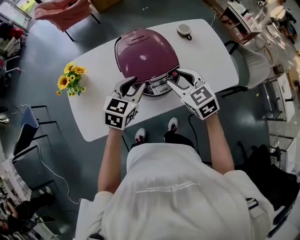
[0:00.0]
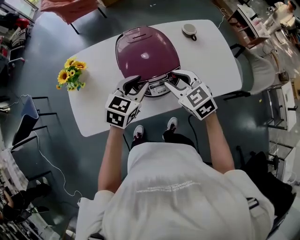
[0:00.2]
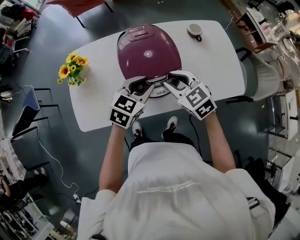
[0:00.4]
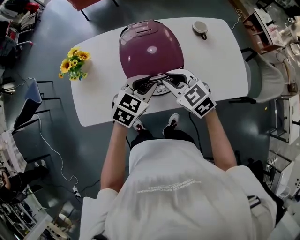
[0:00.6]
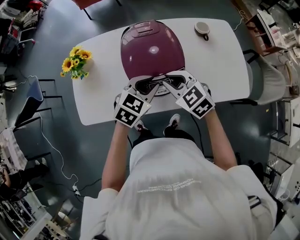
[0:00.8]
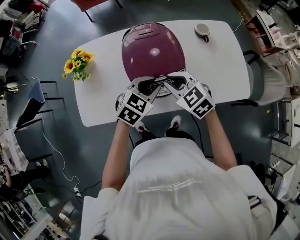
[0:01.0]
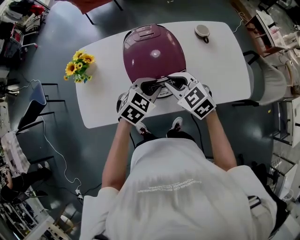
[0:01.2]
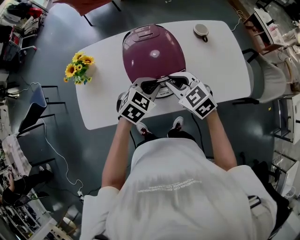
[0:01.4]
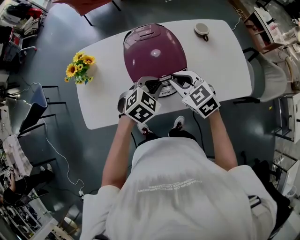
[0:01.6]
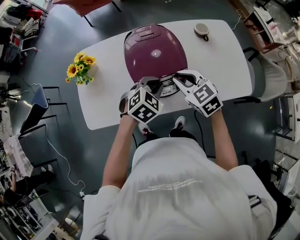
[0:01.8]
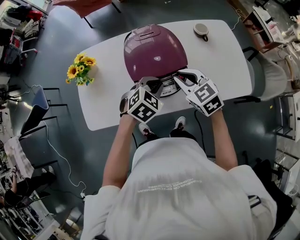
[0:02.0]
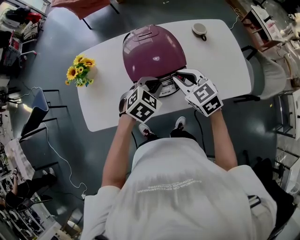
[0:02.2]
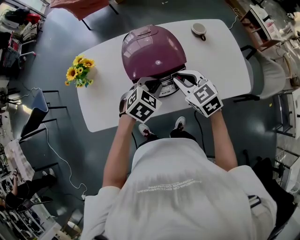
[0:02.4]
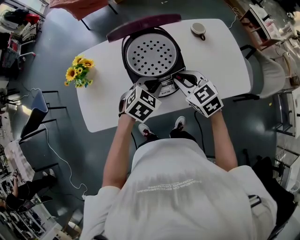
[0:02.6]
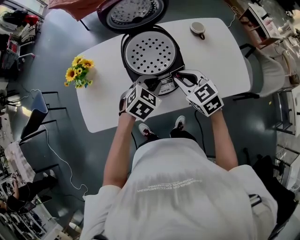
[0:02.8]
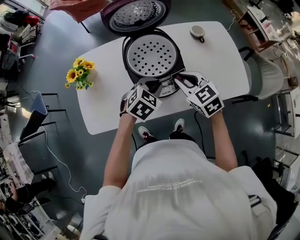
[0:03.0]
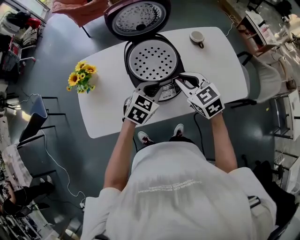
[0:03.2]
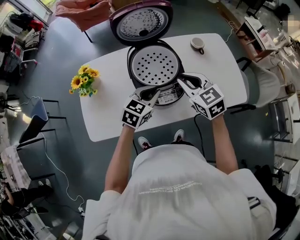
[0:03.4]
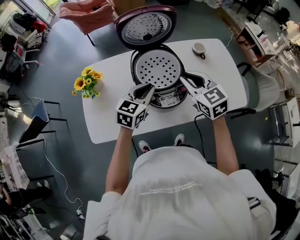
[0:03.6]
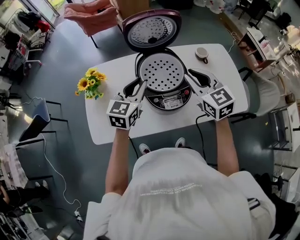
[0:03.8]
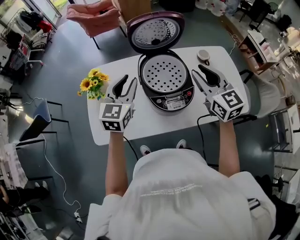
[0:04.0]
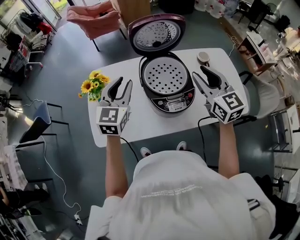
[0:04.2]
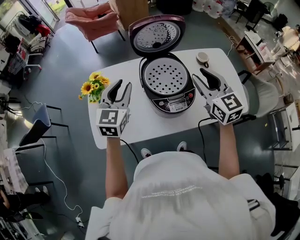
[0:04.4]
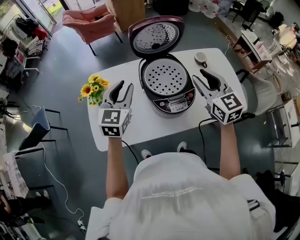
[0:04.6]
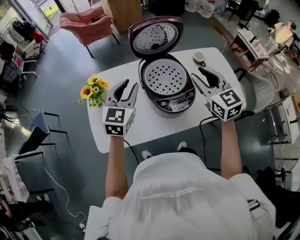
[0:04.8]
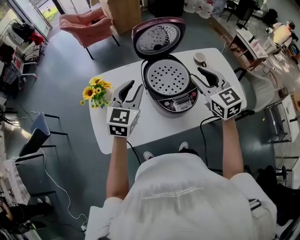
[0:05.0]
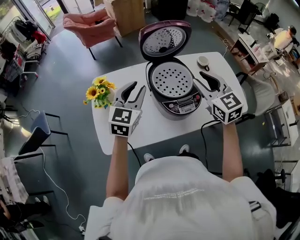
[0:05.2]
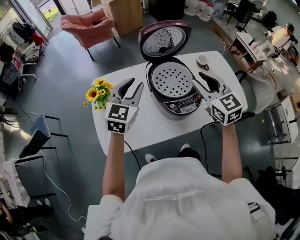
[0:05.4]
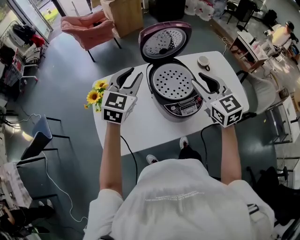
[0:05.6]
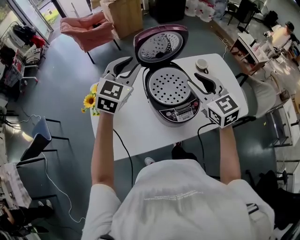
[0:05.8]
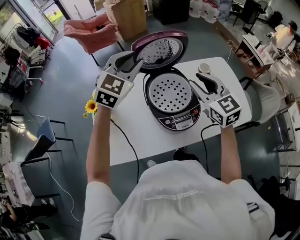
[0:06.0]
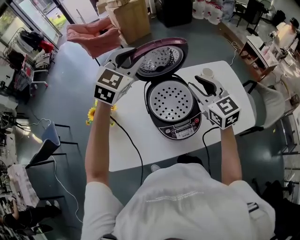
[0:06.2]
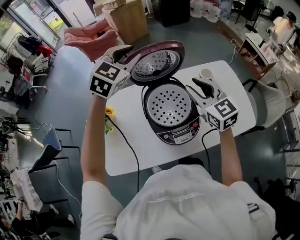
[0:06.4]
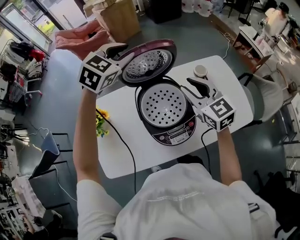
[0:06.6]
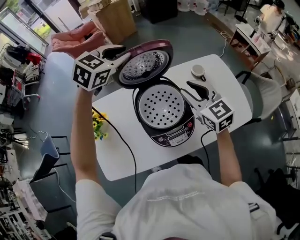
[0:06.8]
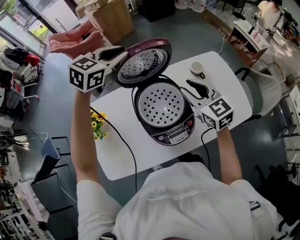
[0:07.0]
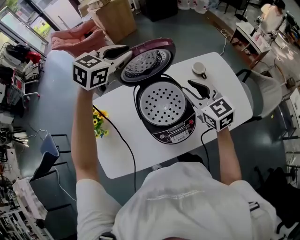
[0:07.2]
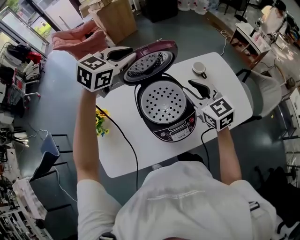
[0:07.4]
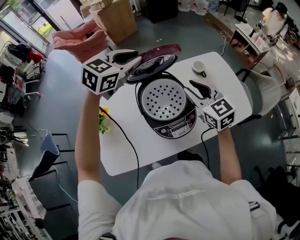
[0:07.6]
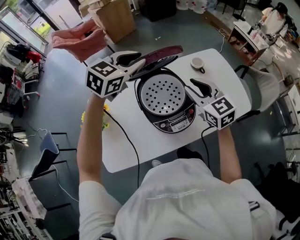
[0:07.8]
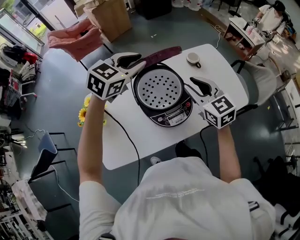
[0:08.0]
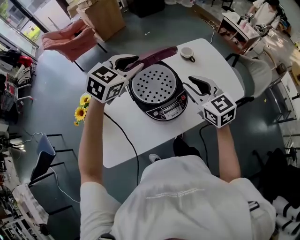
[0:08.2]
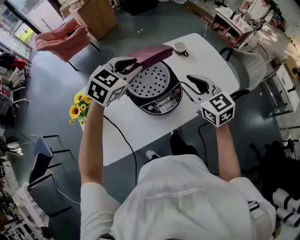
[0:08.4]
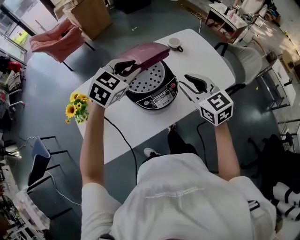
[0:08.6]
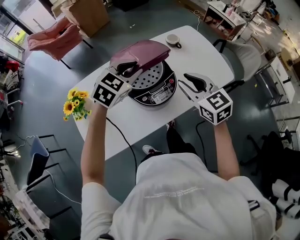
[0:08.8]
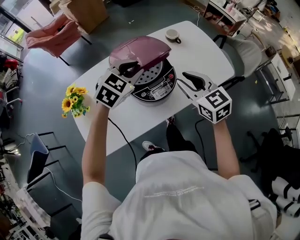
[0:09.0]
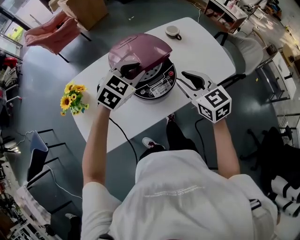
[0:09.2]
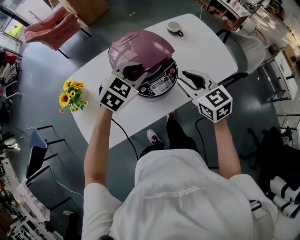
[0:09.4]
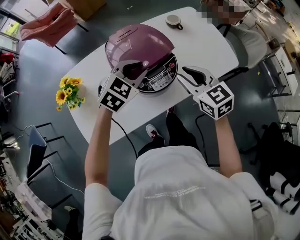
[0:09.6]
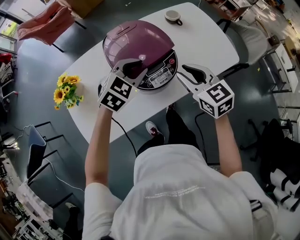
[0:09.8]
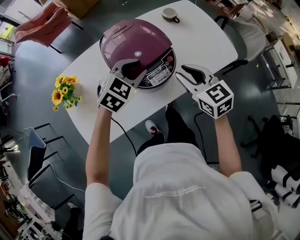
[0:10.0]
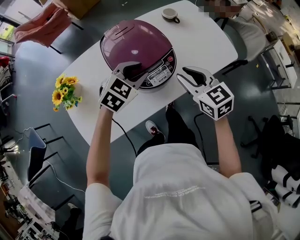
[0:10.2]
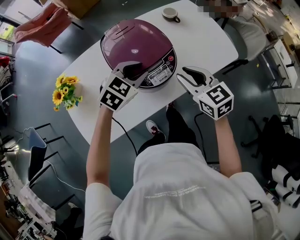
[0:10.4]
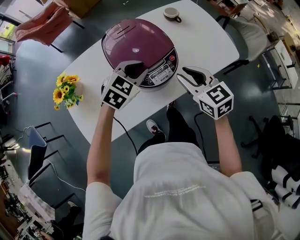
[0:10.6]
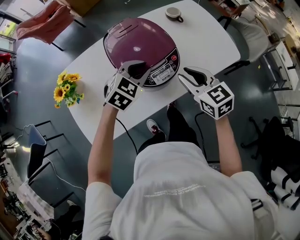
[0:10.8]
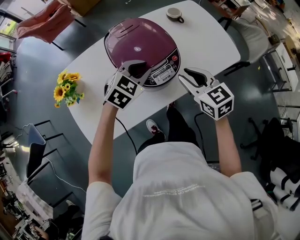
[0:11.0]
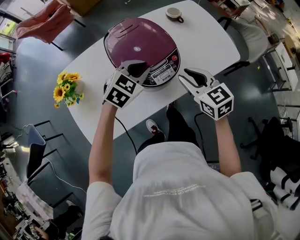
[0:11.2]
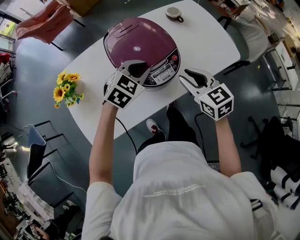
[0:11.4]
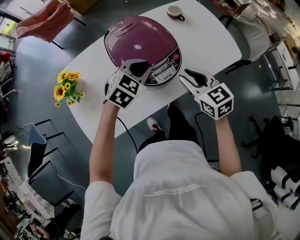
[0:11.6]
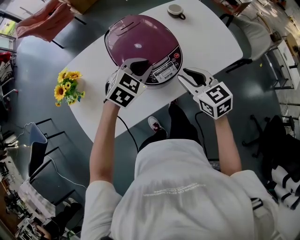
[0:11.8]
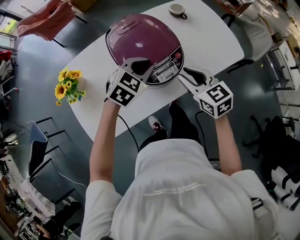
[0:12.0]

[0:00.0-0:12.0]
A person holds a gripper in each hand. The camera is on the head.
0:00.0 to 0:01.6: The left gripper heads to the right, covering roughly 5 cm, rotates some 30 degrees, and closes, while the right gripper closes its fingers.
0:01.6 to 0:03.0: The grippers stay close to where they were, moving slightly.
0:03.0 to 0:04.4: The right gripper travels upward by about 15 cm, turns by some 30 degrees, and opens. Meanwhile the left gripper is displaced to the left and upward by about 25 cm, and tips its fingers upward by some 40 degrees.
0:04.4 to 0:06.0: The left gripper goes roughly 15 cm forward, upward and to the right, and swivels about 30 degrees; the right gripper is displaced forward by approximately 5 cm.
0:06.0 to 0:07.6: The right gripper moves roughly 5 cm; the left gripper shifts about 10 cm forward and to the right, and swivels some 30 degrees.
0:07.6 to 0:09.0: The left gripper travels backward, downward and to the right by roughly 20 cm; the right gripper goes some 15 cm backward and to the right.
0:09.0 to 0:10.4: The grippers both shift downward by about 10 cm.
0:10.4 to 0:12.0: There are only small adjustments of the grippers.

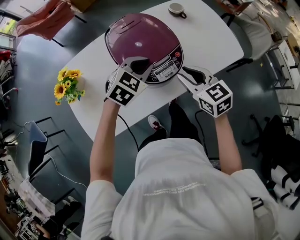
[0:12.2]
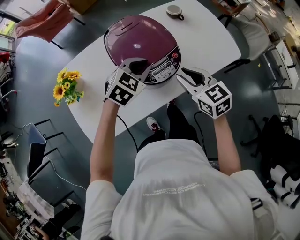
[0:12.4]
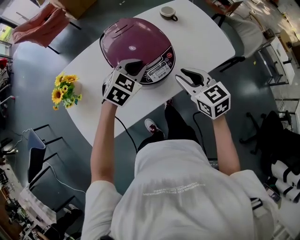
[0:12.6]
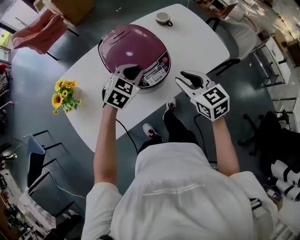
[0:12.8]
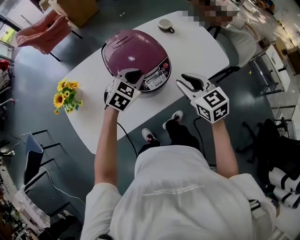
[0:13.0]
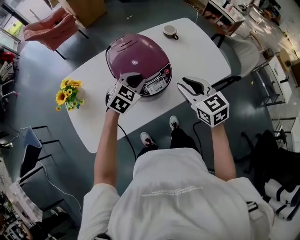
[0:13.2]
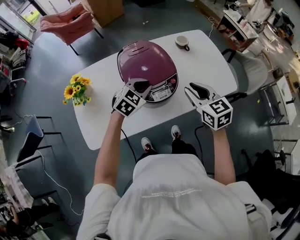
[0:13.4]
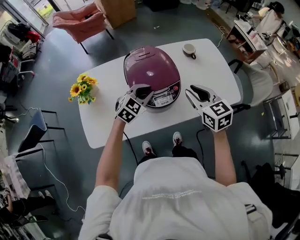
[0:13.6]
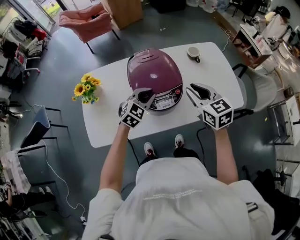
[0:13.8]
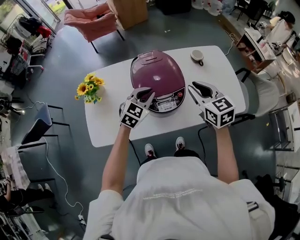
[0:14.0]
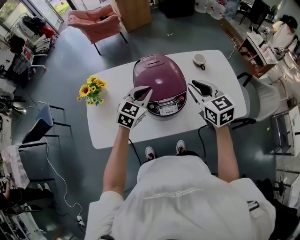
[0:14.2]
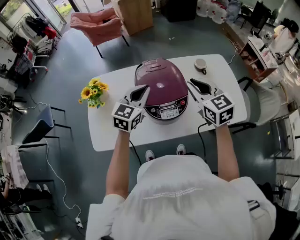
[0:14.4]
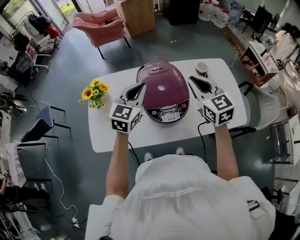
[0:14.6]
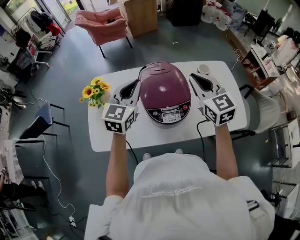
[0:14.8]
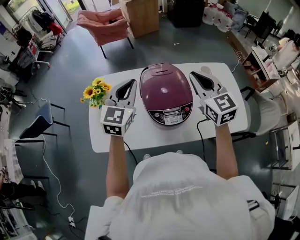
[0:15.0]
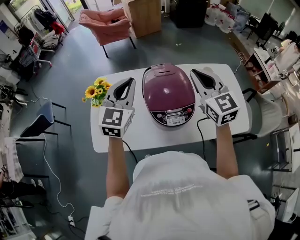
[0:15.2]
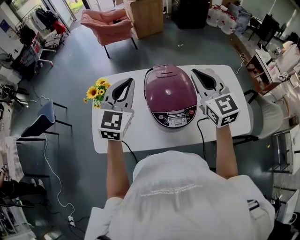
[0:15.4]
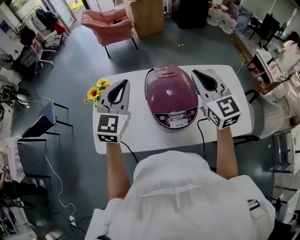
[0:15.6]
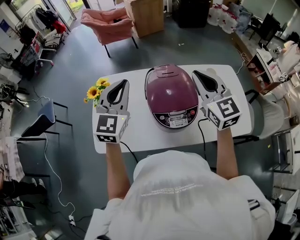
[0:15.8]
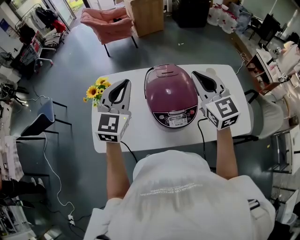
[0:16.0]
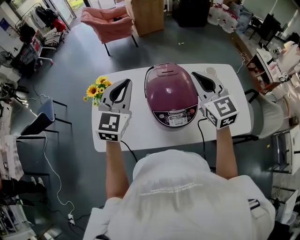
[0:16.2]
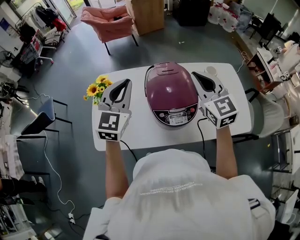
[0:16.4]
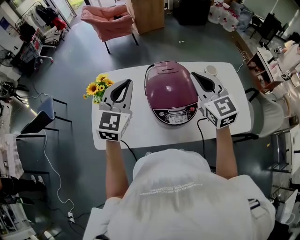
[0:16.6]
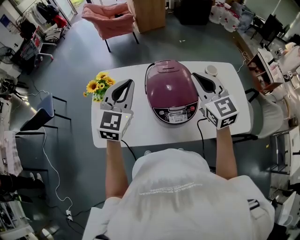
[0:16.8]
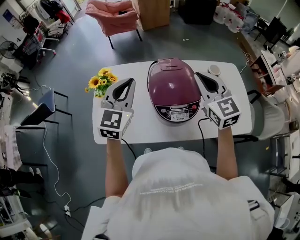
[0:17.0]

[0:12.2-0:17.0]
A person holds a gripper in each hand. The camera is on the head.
0:12.2 to 0:13.8: The right gripper is displaced upward and forward by some 10 cm.
0:13.8 to 0:15.4: The right gripper is displaced upward, forward and to the left by some 15 cm, and changes its angle by roughly 30 degrees. The left gripper moves upward and to the left, some 25 cm, and changes its angle by approximately 40 degrees.
0:15.4 to 0:17.0: There are only small adjustments of the grippers.

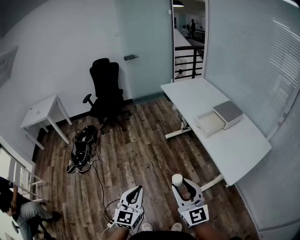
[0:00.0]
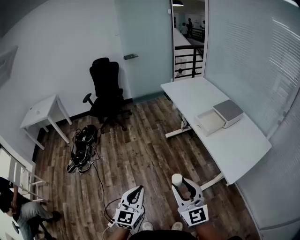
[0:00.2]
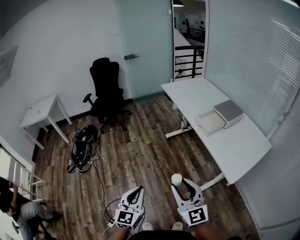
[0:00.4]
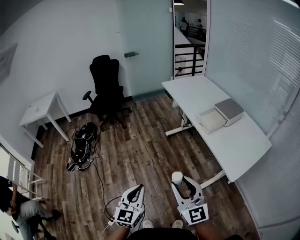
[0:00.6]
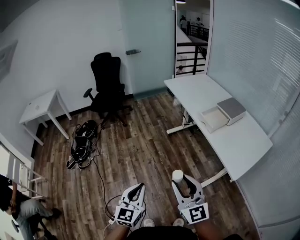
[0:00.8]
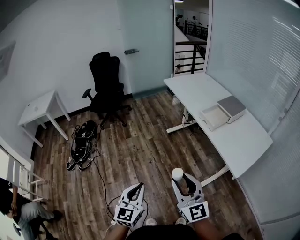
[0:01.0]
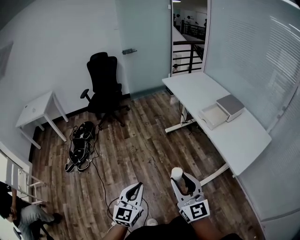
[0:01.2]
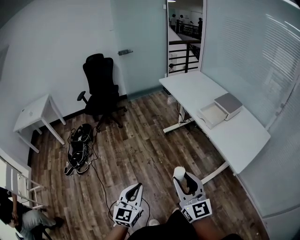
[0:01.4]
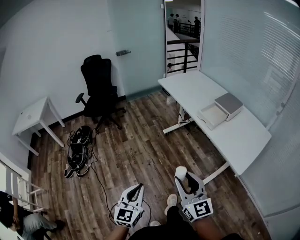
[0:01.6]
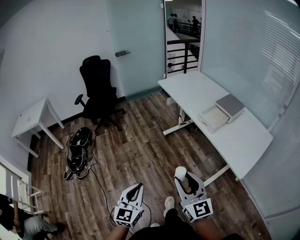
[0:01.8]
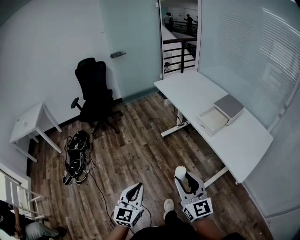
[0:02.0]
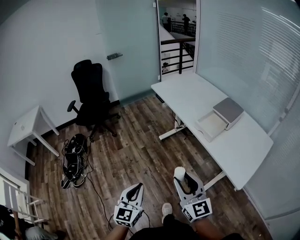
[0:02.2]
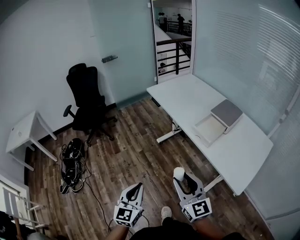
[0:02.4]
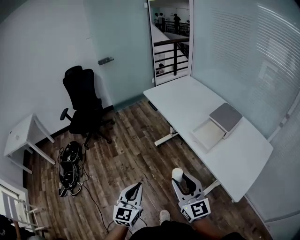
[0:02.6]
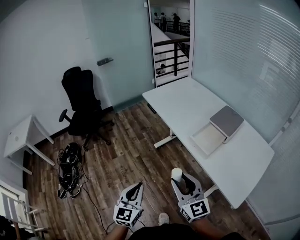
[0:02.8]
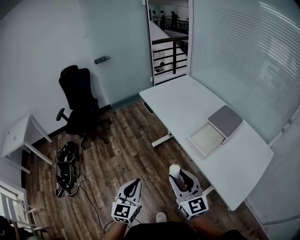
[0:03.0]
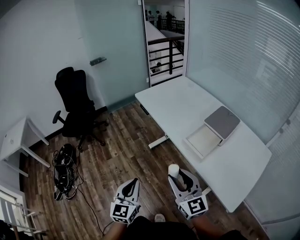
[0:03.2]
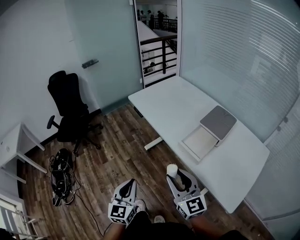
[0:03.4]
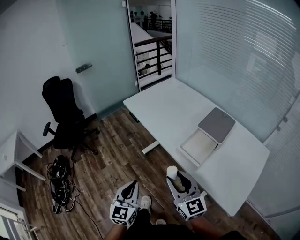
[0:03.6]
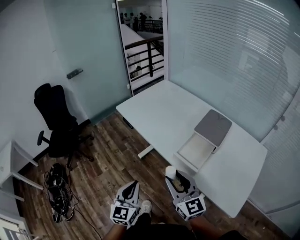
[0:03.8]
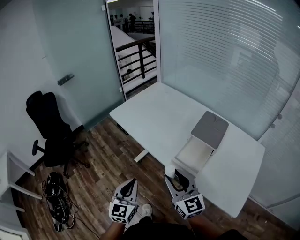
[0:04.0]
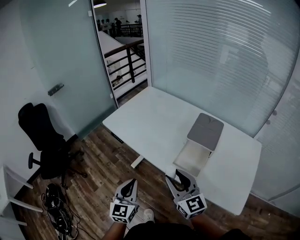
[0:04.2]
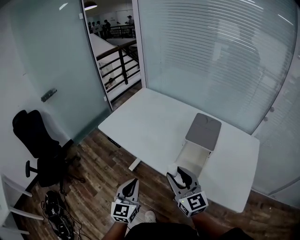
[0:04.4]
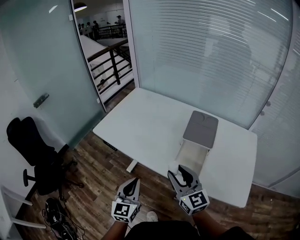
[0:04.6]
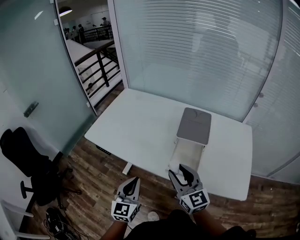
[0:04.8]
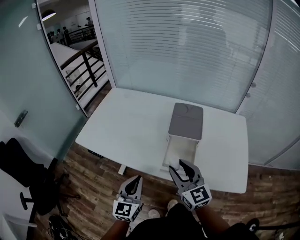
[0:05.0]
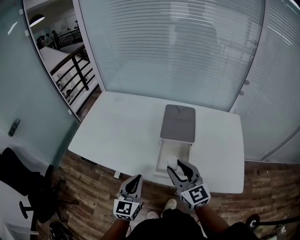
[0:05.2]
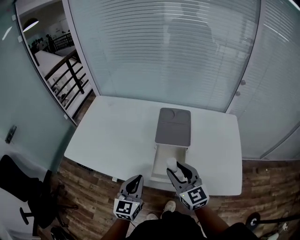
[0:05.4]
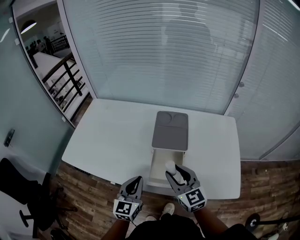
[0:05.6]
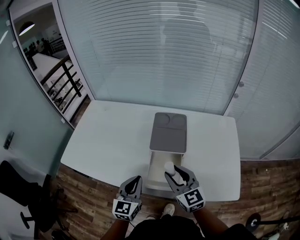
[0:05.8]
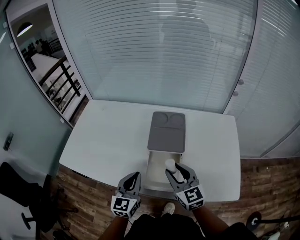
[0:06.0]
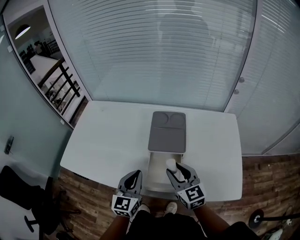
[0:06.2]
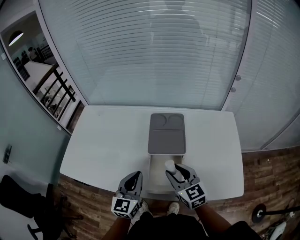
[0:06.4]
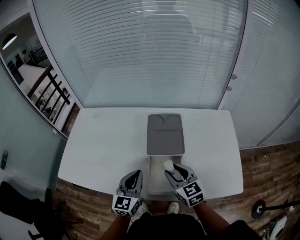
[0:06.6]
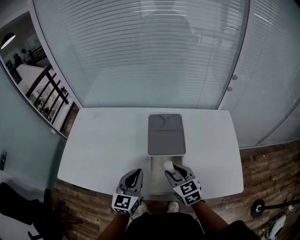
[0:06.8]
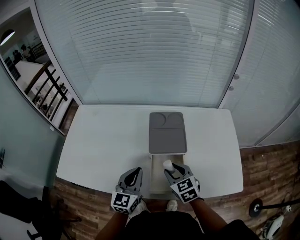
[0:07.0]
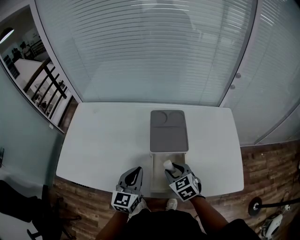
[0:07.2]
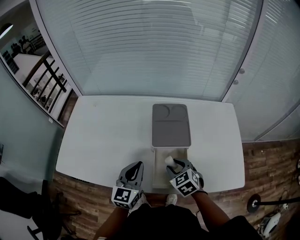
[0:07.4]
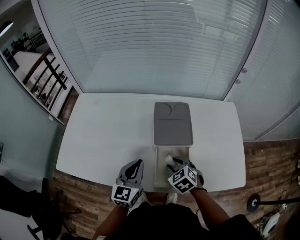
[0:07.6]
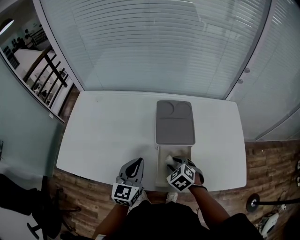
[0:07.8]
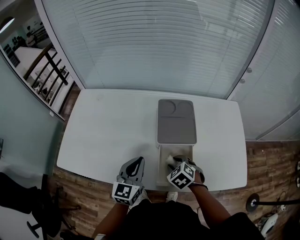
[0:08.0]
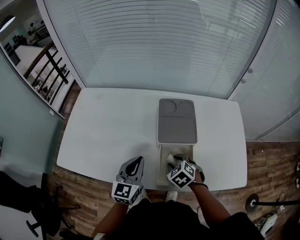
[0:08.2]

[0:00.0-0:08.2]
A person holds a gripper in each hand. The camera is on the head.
0:00.0 to 0:01.6: Both grippers travel together to the left, about 5 cm.
0:01.6 to 0:03.2: Both grippers move forward, roughly 30 cm.
0:03.2 to 0:05.0: The left gripper moves approximately 30 cm, and rotates approximately 40 degrees. Meanwhile the right gripper ends up about 25 cm from where it was, and turns by roughly 40 degrees.
0:05.0 to 0:06.6: The left gripper goes roughly 20 cm forward and to the right. The right gripper goes roughly 15 cm forward, downward and to the right, and turns by roughly 20 degrees.
0:06.6 to 0:08.2: The right gripper moves downward, roughly 10 cm, and tips its fingers downward by roughly 40 degrees.
